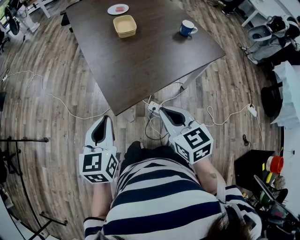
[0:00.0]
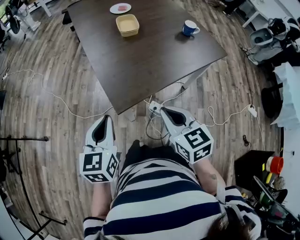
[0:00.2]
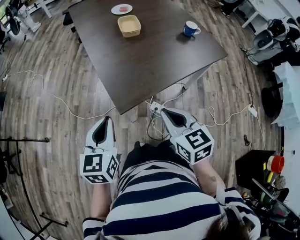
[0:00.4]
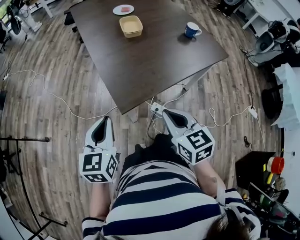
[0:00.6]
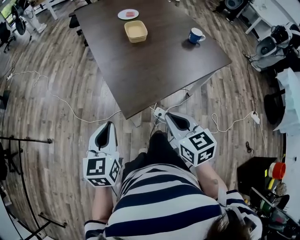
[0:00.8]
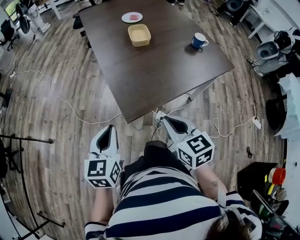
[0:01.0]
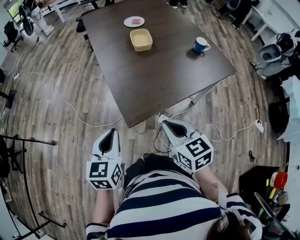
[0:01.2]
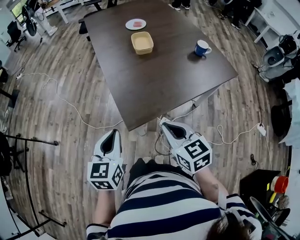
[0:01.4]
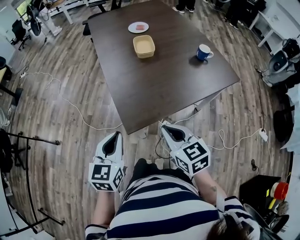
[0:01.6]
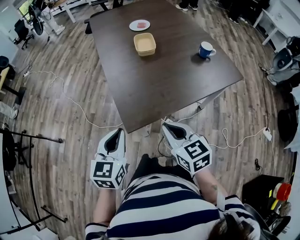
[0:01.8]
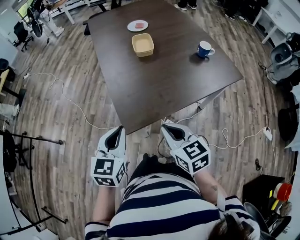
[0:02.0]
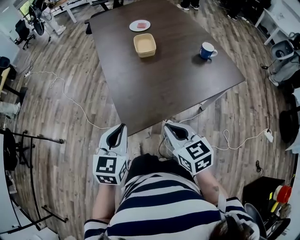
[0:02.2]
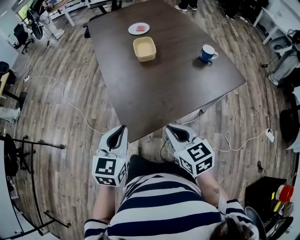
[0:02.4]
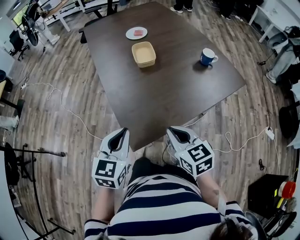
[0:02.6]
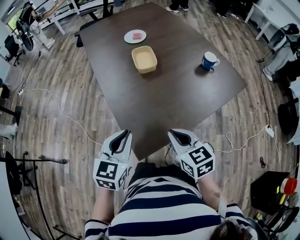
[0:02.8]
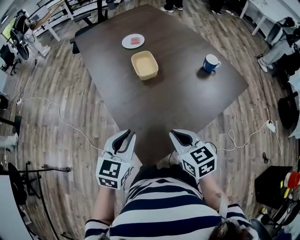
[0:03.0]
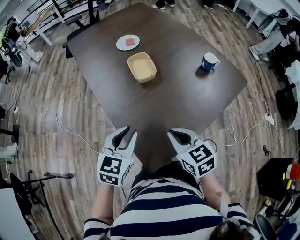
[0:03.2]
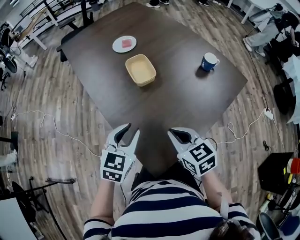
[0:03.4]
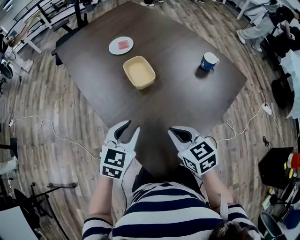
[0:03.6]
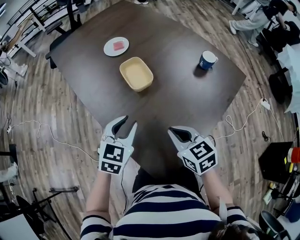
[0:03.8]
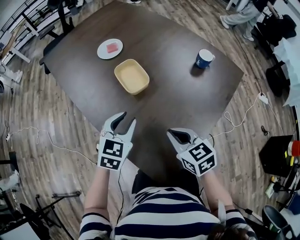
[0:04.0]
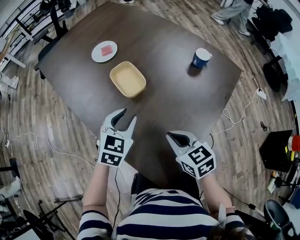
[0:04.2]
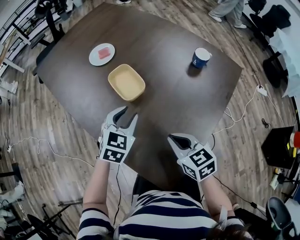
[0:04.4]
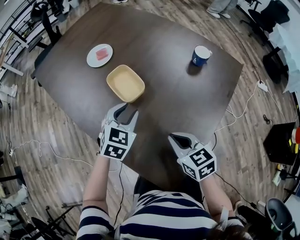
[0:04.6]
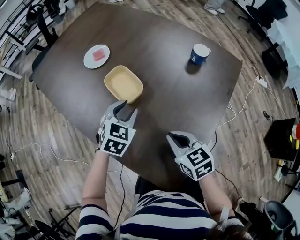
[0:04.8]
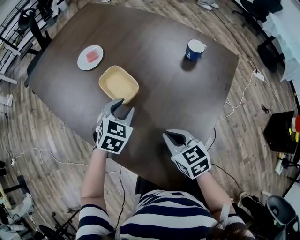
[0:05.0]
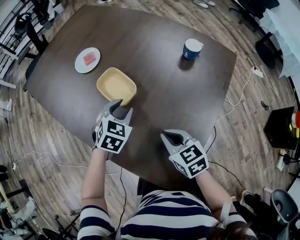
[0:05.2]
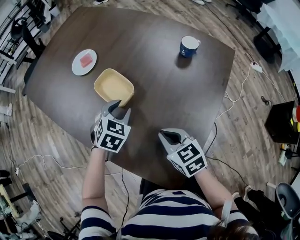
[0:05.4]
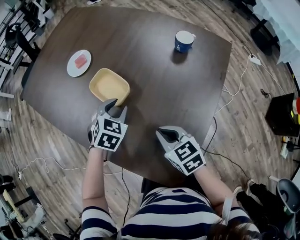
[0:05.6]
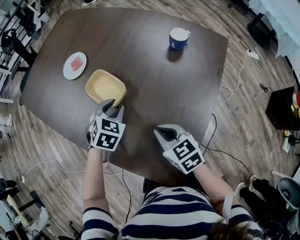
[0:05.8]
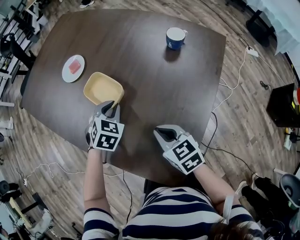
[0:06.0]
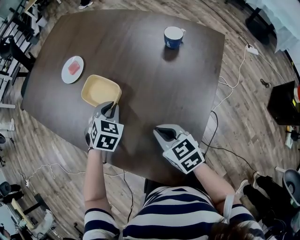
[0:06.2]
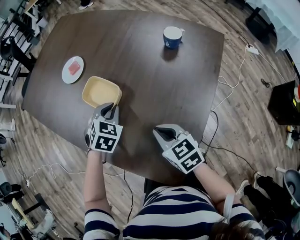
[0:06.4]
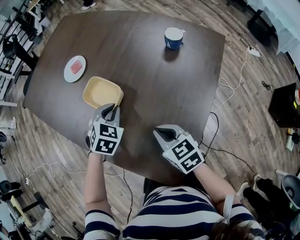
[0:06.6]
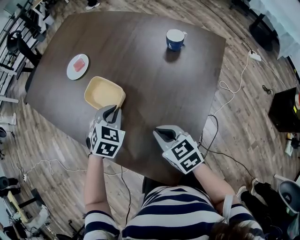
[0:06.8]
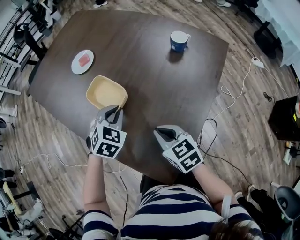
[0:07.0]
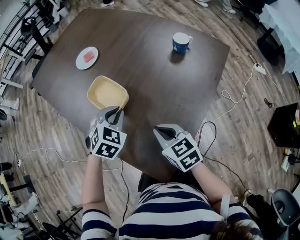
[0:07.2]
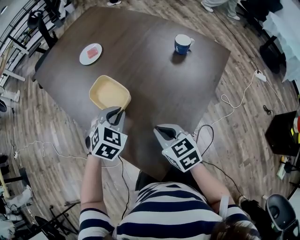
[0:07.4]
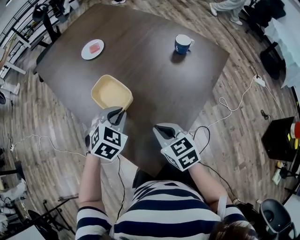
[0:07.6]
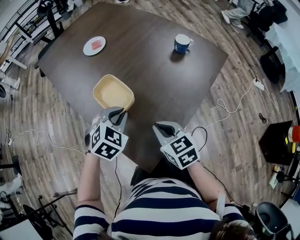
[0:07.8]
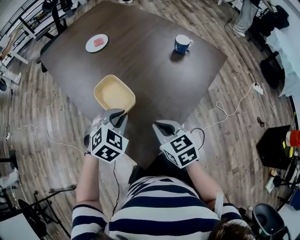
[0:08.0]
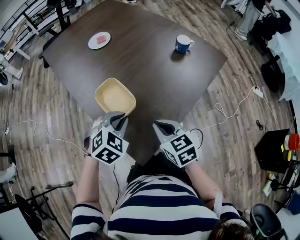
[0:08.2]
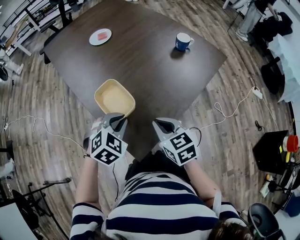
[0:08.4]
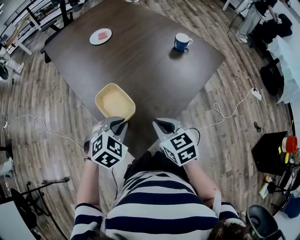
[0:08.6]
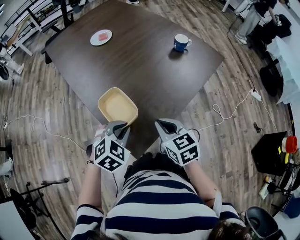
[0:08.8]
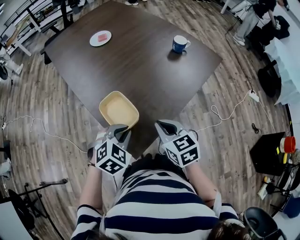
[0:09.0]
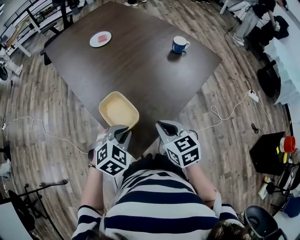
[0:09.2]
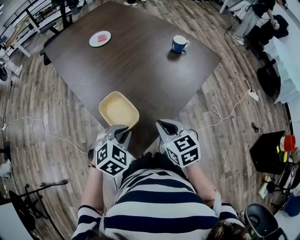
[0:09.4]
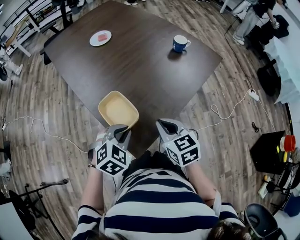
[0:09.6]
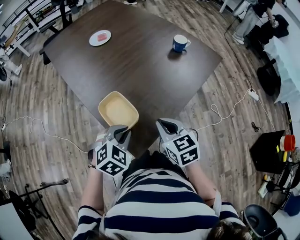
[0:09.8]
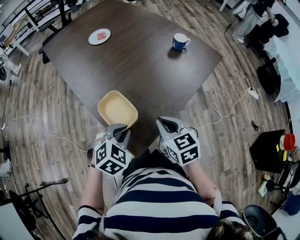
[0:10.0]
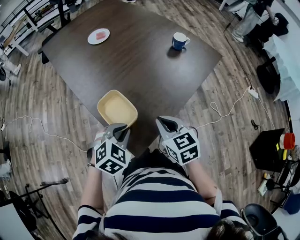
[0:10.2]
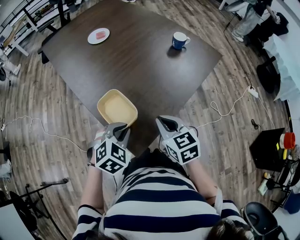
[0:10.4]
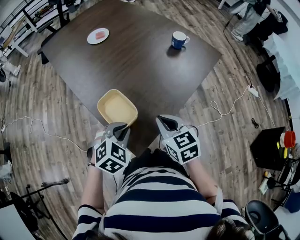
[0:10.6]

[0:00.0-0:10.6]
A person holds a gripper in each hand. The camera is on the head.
0.0 to 1.6 s: The grippers make only small movements.
1.6 to 3.0 s: Both grippers travel together forward, about 15 cm. The left gripper changes its angle by about 20 degrees.
3.0 to 4.6 s: The left gripper shifts some 30 cm forward, and changes its angle by some 30 degrees; the right gripper is displaced forward and downward by approximately 15 cm.
4.6 to 6.0 s: The left gripper moves downward, approximately 5 cm.
6.0 to 7.6 s: The right gripper is displaced backward by some 10 cm; the left gripper is displaced backward and upward by approximately 20 cm.
7.6 to 9.0 s: The right gripper heads backward, covering roughly 10 cm. The left gripper goes about 20 cm backward.
9.0 to 10.6 s: Both grippers stay about where they are.

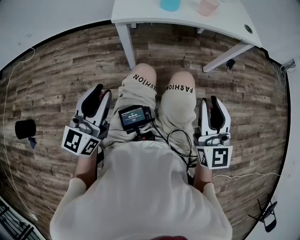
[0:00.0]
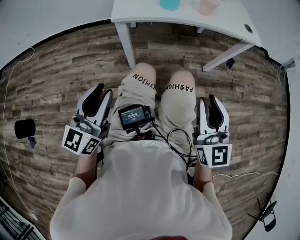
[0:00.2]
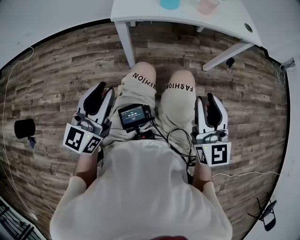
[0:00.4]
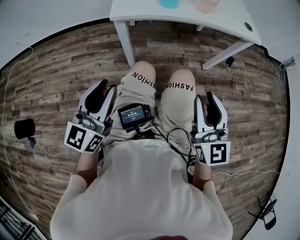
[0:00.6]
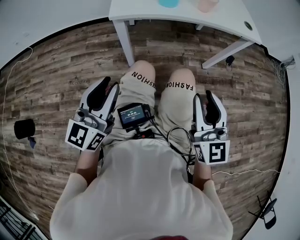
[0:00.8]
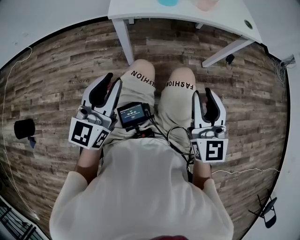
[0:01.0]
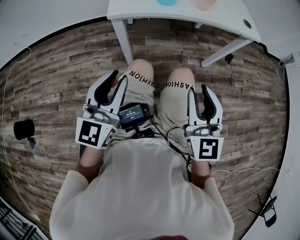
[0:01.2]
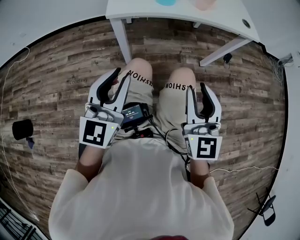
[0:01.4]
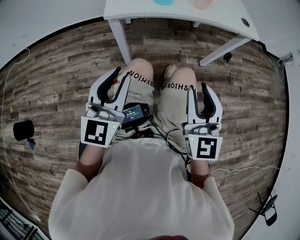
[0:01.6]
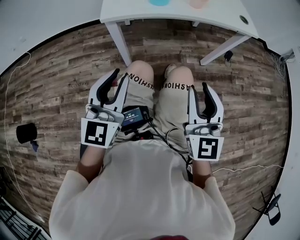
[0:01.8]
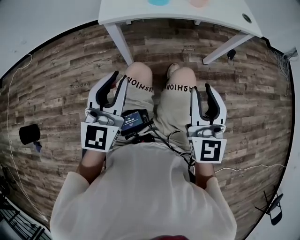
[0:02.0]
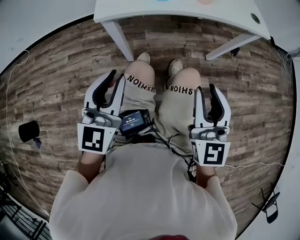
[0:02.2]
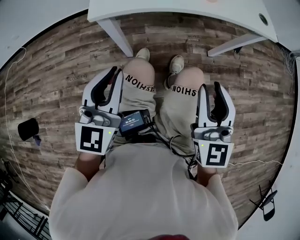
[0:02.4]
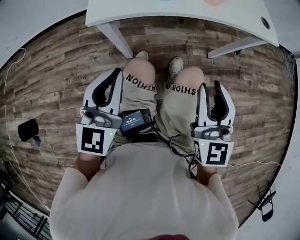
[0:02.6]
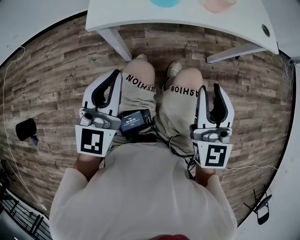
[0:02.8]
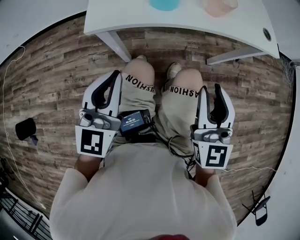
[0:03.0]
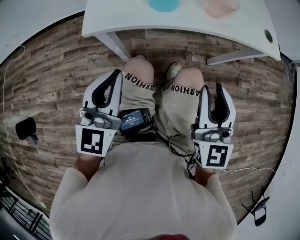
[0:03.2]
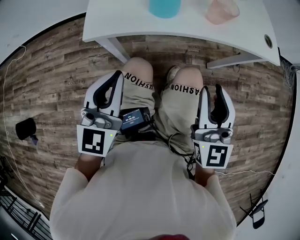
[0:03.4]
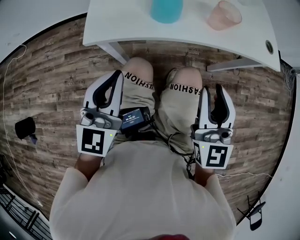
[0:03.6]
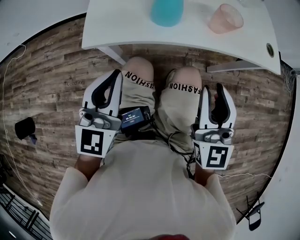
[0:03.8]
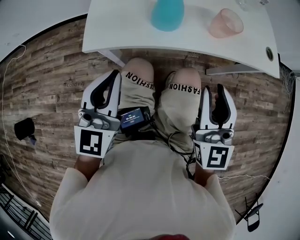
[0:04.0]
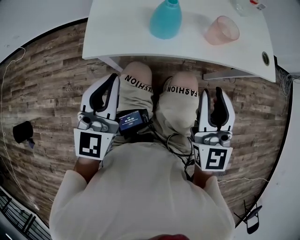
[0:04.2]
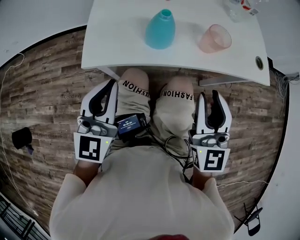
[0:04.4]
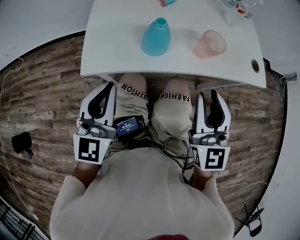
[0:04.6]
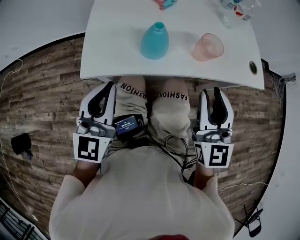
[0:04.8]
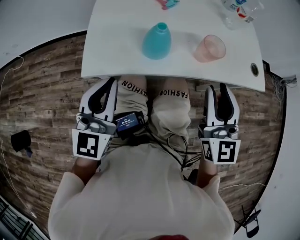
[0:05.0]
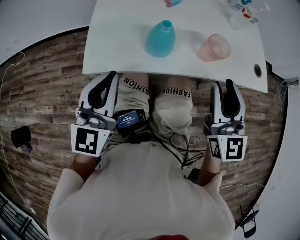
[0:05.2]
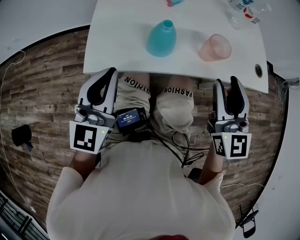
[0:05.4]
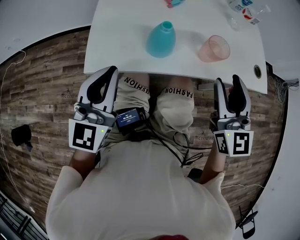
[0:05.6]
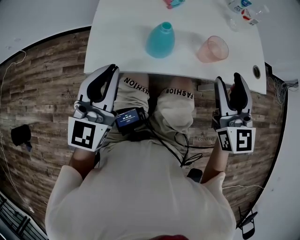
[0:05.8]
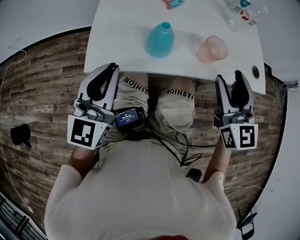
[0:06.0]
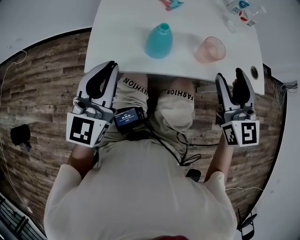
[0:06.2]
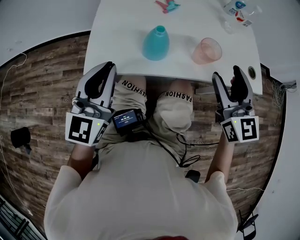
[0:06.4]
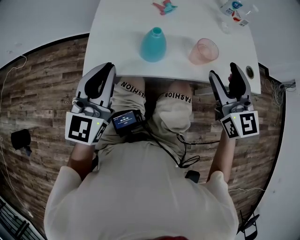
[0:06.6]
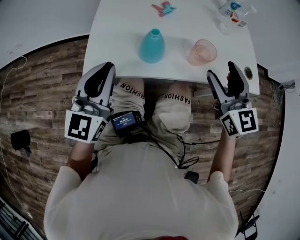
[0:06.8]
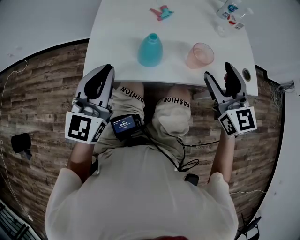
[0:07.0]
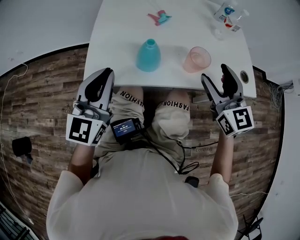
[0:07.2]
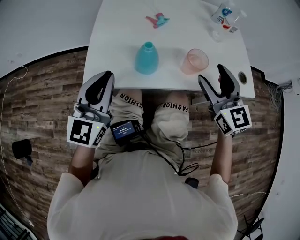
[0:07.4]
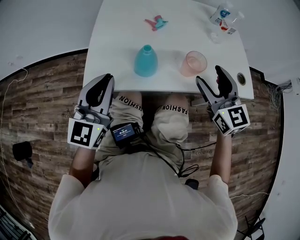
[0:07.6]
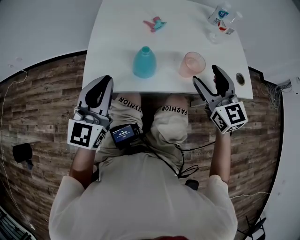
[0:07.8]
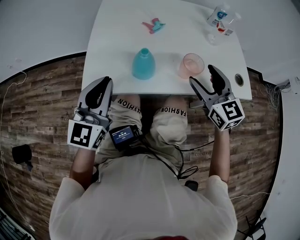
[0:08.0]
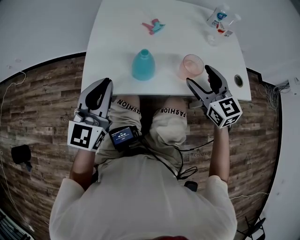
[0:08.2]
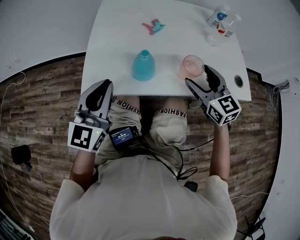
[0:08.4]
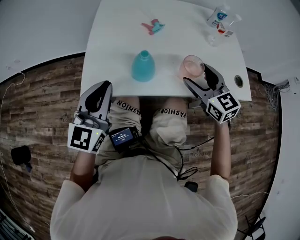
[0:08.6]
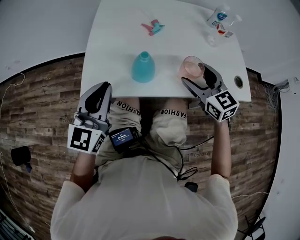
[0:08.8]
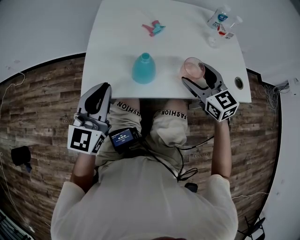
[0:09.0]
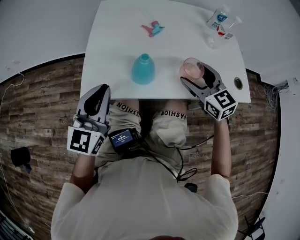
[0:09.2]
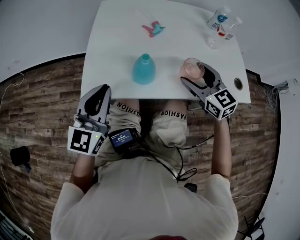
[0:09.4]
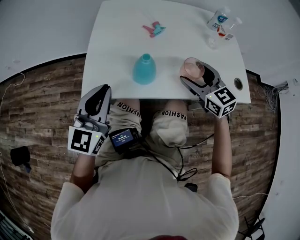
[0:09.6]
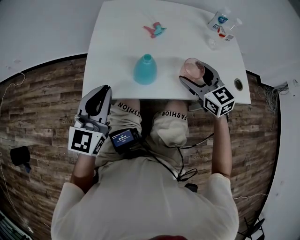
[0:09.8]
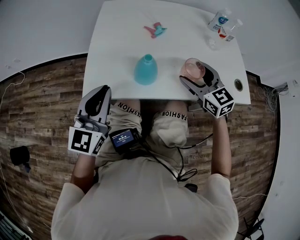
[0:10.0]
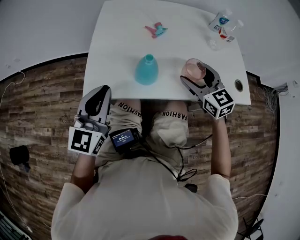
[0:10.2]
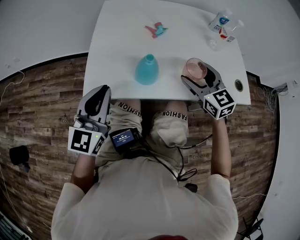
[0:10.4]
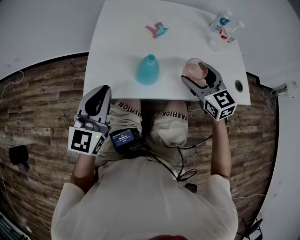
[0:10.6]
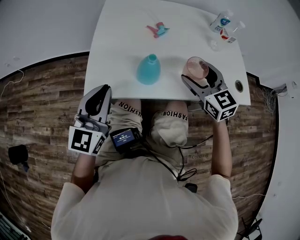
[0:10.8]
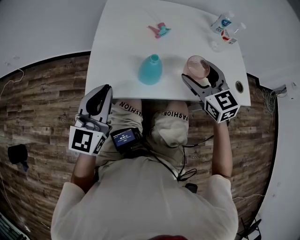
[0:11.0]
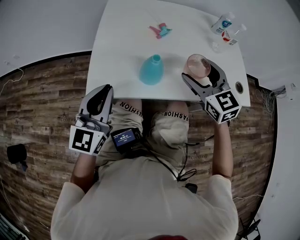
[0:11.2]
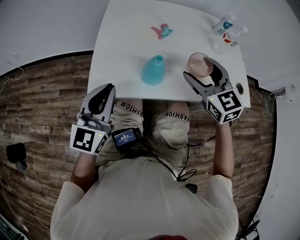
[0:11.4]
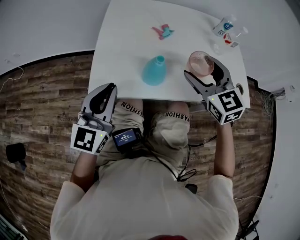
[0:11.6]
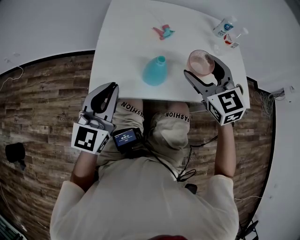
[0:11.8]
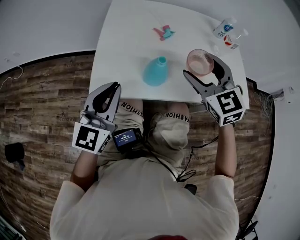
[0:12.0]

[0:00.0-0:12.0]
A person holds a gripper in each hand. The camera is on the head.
0.0 to 1.6 s: The left gripper goes roughly 5 cm to the right.
1.6 to 3.0 s: The two grippers go some 15 cm forward. The left gripper closes up.
3.0 to 4.4 s: Both grippers travel together forward, approximately 10 cm.
4.4 to 6.0 s: The left gripper goes approximately 5 cm forward. The right gripper travels forward and to the right by about 10 cm.
6.0 to 7.6 s: The grippers make only small movements.
7.6 to 9.0 s: The right gripper is displaced downward by approximately 5 cm.
9.0 to 10.4 s: There are only small adjustments of the grippers.
10.4 to 12.0 s: The right gripper moves upward and to the left, some 10 cm.

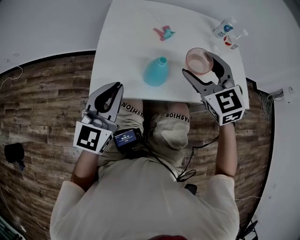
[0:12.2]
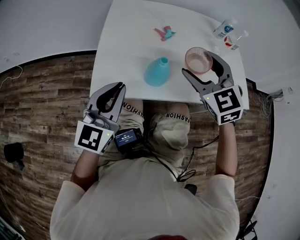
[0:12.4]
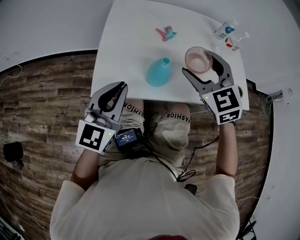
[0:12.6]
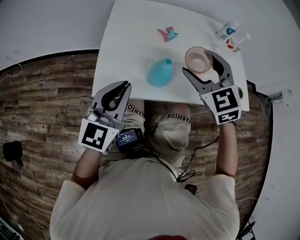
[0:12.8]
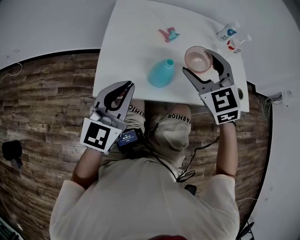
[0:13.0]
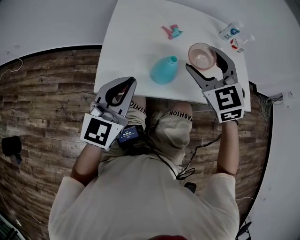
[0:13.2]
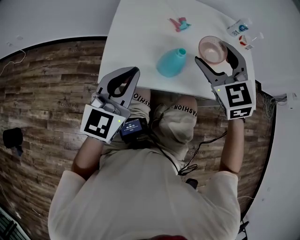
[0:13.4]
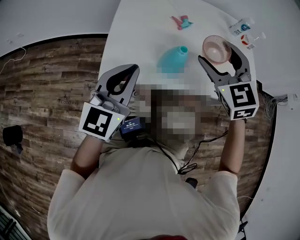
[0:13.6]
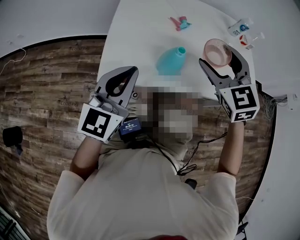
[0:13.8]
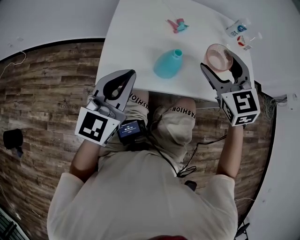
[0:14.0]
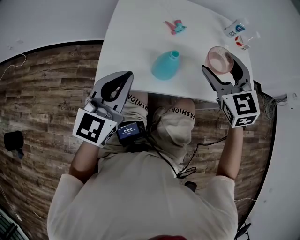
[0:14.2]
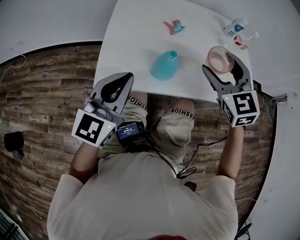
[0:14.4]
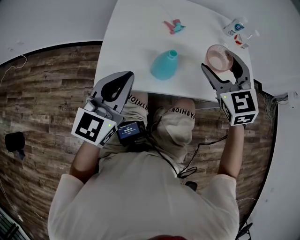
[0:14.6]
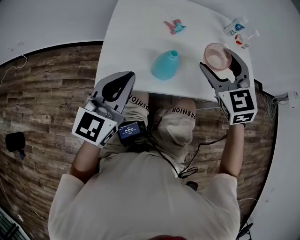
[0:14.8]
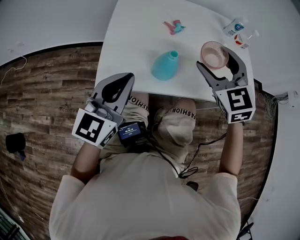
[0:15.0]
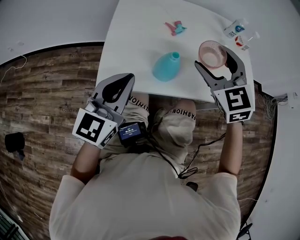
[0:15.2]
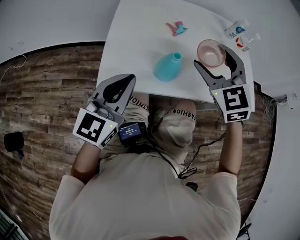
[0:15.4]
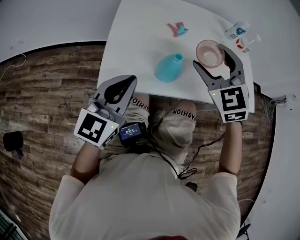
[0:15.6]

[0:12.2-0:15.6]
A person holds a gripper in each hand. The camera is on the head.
12.2 to 15.6 s: There are only small adjustments of the grippers.
